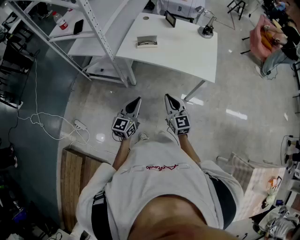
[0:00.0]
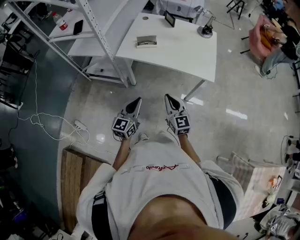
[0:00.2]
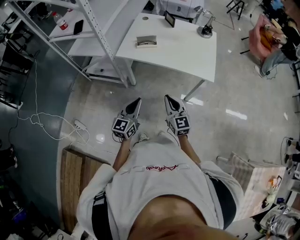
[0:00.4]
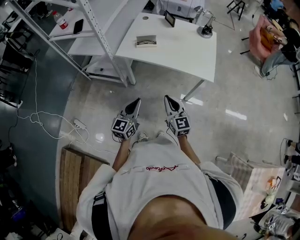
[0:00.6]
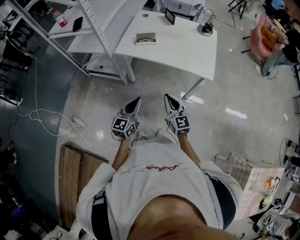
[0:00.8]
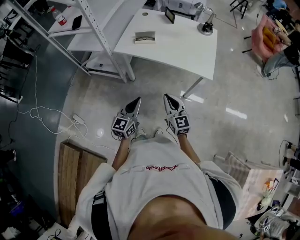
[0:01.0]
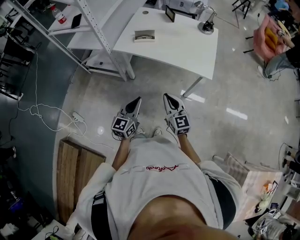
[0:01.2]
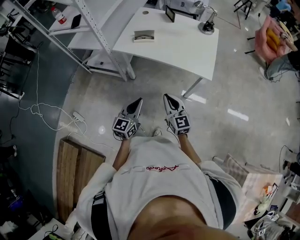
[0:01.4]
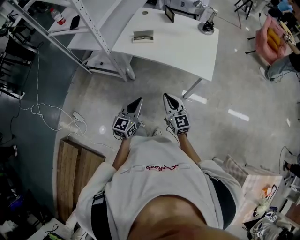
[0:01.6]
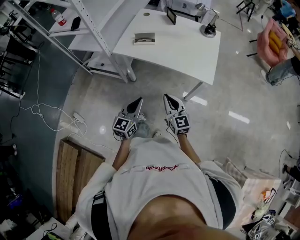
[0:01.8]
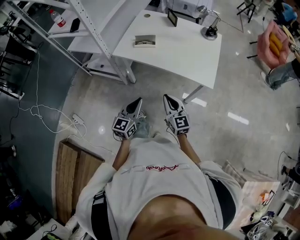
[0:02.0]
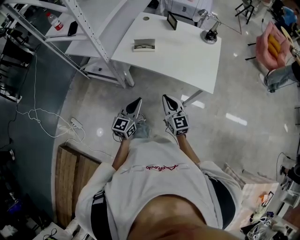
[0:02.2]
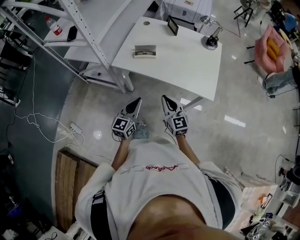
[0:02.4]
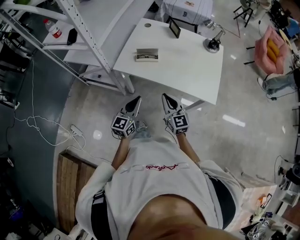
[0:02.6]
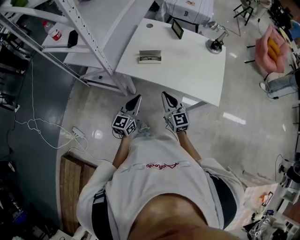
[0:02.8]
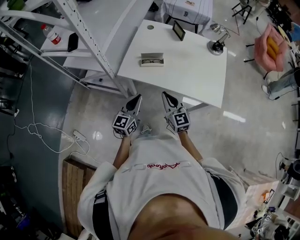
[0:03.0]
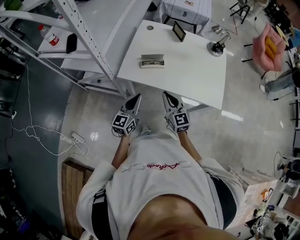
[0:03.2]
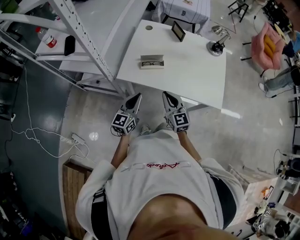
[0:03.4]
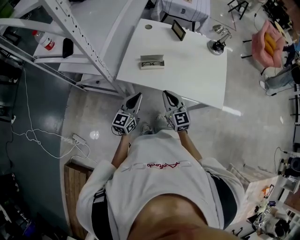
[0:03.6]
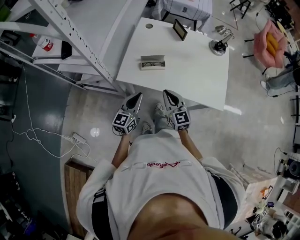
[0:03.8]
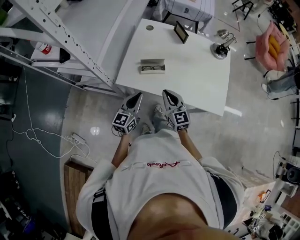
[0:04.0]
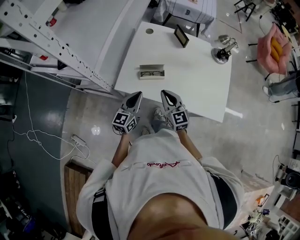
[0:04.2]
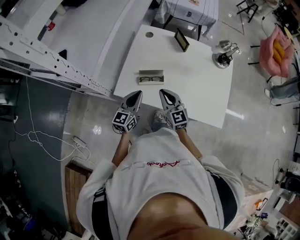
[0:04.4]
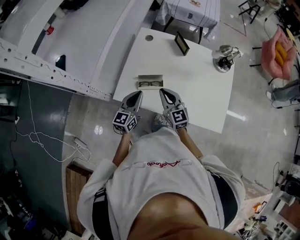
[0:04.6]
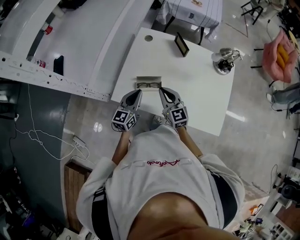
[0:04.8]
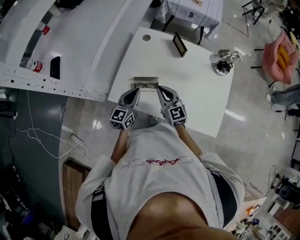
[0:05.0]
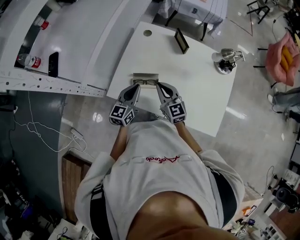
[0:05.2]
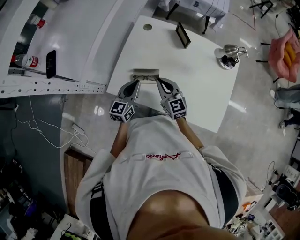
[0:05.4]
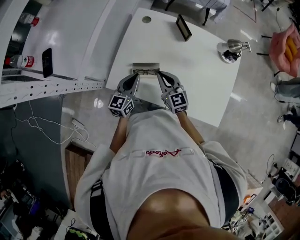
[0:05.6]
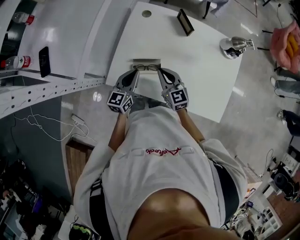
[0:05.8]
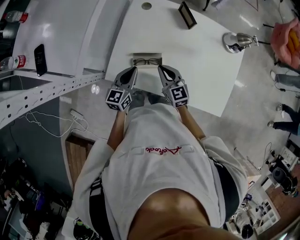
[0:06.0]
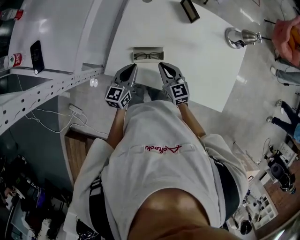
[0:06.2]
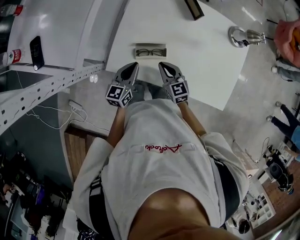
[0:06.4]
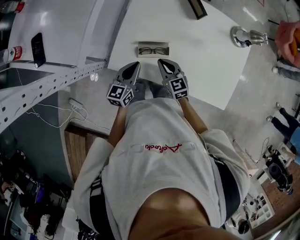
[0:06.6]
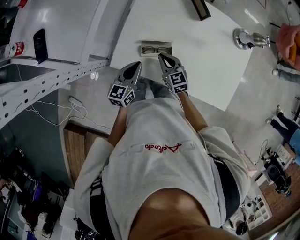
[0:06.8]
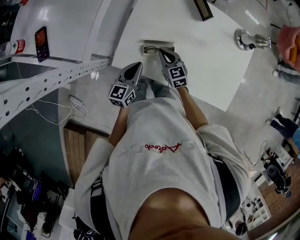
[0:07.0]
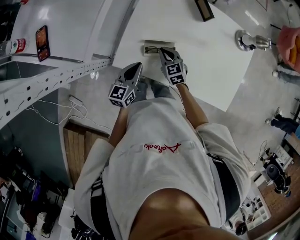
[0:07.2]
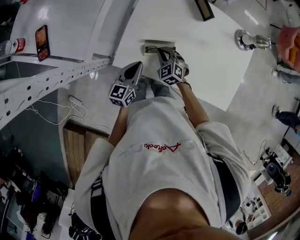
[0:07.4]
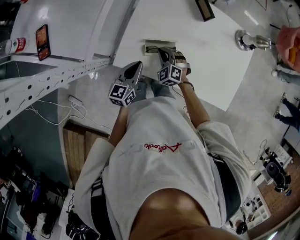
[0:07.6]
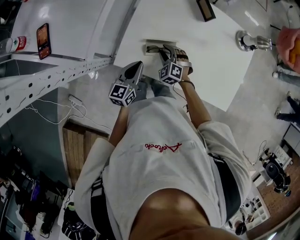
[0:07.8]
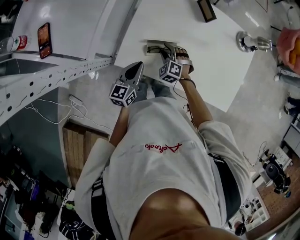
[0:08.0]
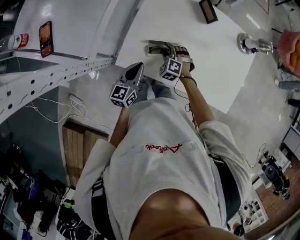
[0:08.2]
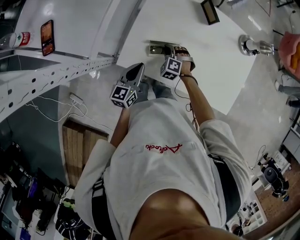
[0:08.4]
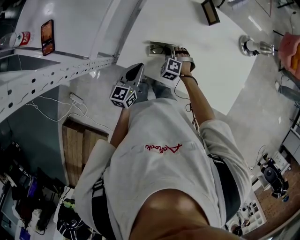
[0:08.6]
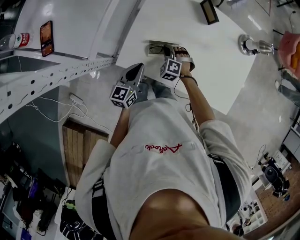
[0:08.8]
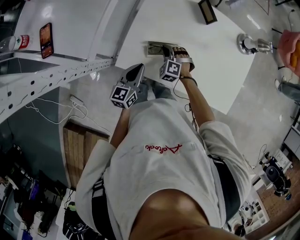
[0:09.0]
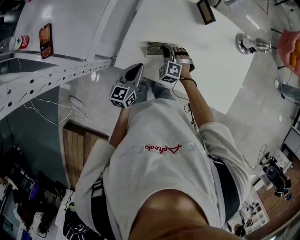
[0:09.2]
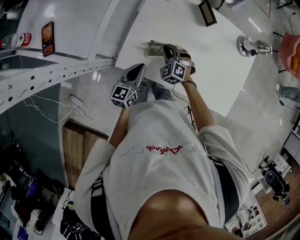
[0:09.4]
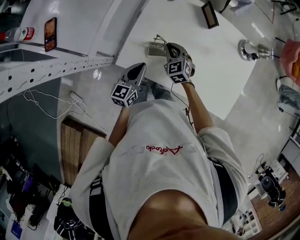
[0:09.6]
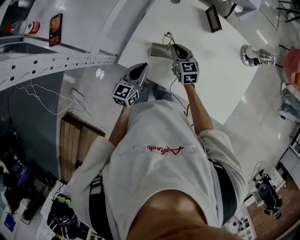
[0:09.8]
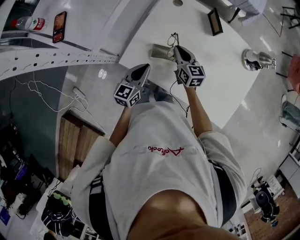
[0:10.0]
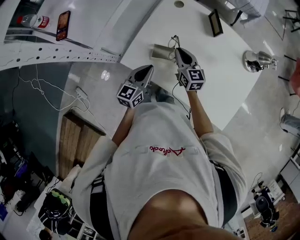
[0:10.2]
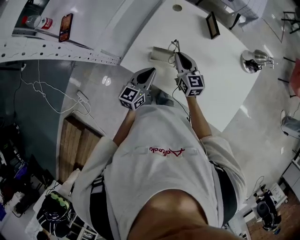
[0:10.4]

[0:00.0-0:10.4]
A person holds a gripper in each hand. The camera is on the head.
0:00.0 to 0:01.4: The right gripper moves some 5 cm; the left gripper shifts some 5 cm to the right.
0:01.4 to 0:03.0: Both grippers move forward and to the left, some 25 cm.
0:03.0 to 0:04.4: The two grippers go some 15 cm forward.
0:04.4 to 0:06.0: The grippers both shift forward and downward by roughly 10 cm.
0:06.0 to 0:07.4: The right gripper moves downward and to the left, about 10 cm, and swivels approximately 40 degrees. The left gripper ends up approximately 5 cm from where it was.
0:07.4 to 0:09.0: The right gripper swivels about 30 degrees, and opens and closes again.
0:09.0 to 0:10.4: The left gripper heads to the right, covering about 5 cm; the right gripper moves upward and to the right, approximately 15 cm, and rolls clockwise, seen from behind, by some 60 degrees.

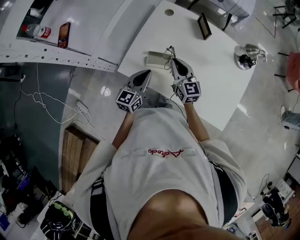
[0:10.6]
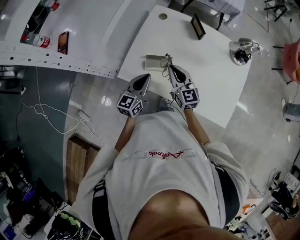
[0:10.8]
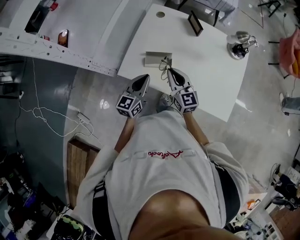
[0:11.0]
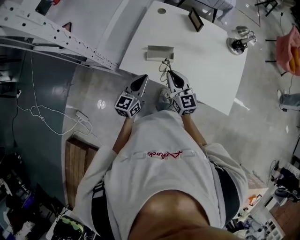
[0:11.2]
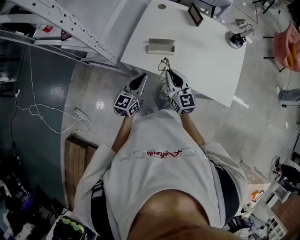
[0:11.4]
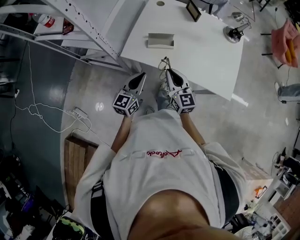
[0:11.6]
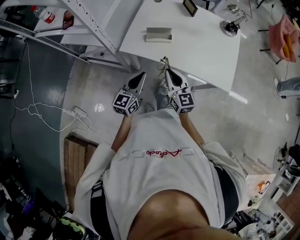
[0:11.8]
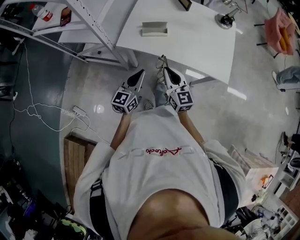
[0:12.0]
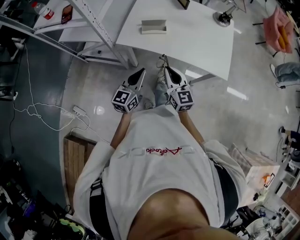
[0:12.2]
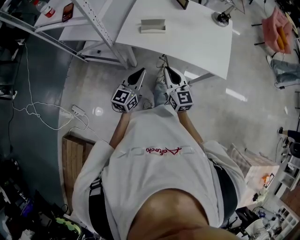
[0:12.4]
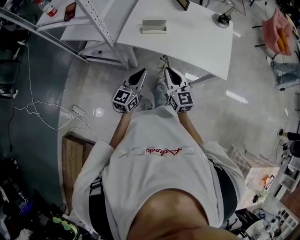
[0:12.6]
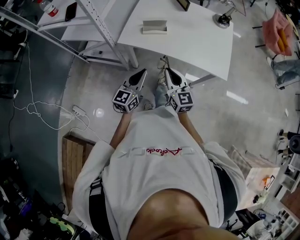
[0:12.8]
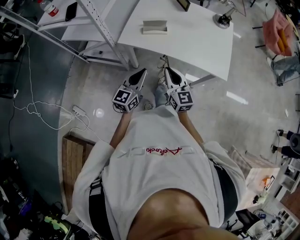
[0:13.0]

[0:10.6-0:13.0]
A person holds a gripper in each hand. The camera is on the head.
0:10.6 to 0:11.8: Both grippers travel together backward, roughly 20 cm.
0:11.8 to 0:13.0: The two grippers go about 5 cm backward.

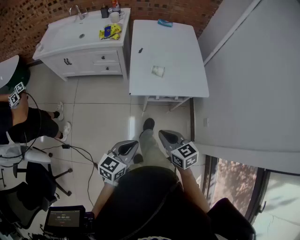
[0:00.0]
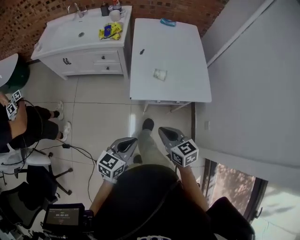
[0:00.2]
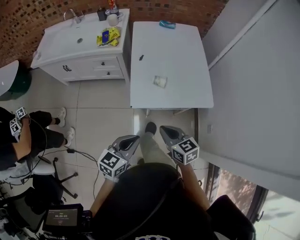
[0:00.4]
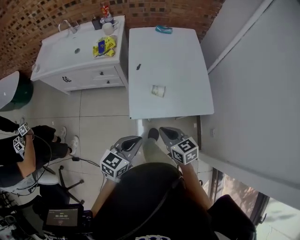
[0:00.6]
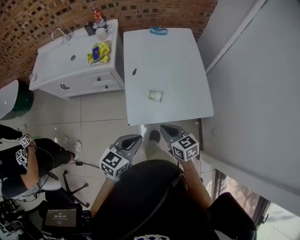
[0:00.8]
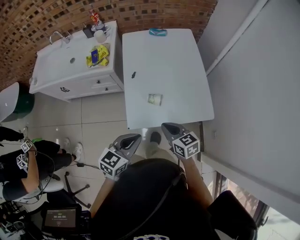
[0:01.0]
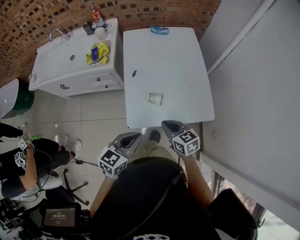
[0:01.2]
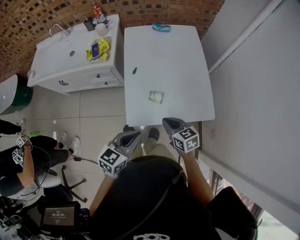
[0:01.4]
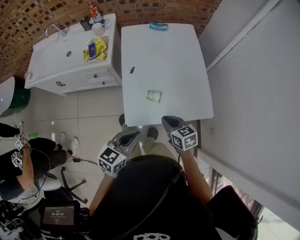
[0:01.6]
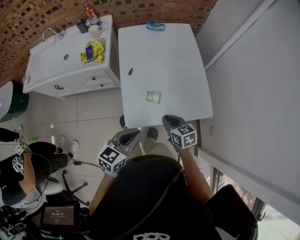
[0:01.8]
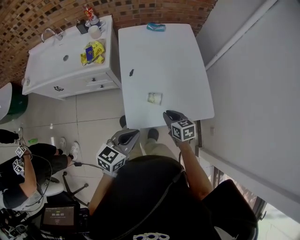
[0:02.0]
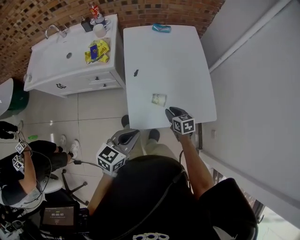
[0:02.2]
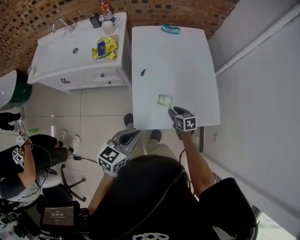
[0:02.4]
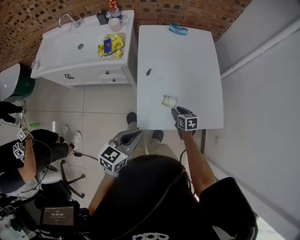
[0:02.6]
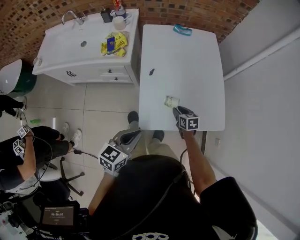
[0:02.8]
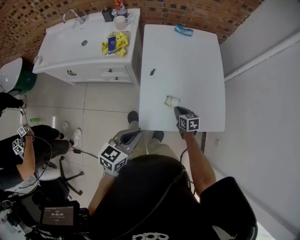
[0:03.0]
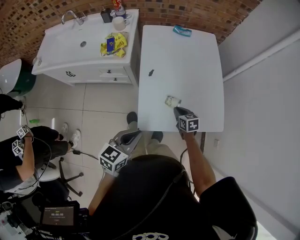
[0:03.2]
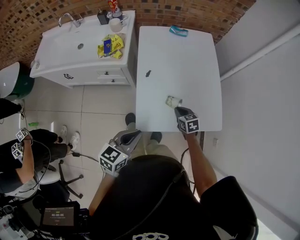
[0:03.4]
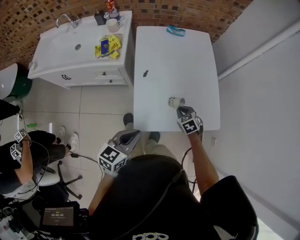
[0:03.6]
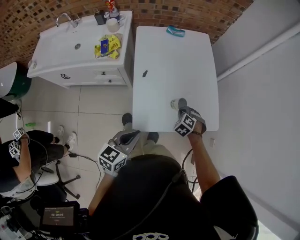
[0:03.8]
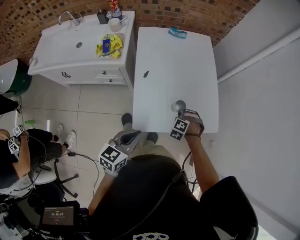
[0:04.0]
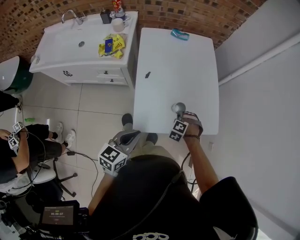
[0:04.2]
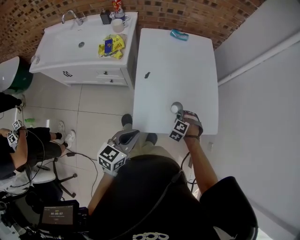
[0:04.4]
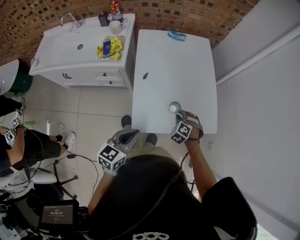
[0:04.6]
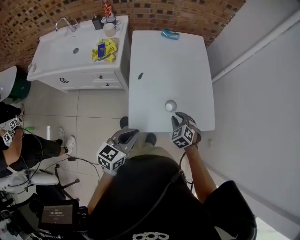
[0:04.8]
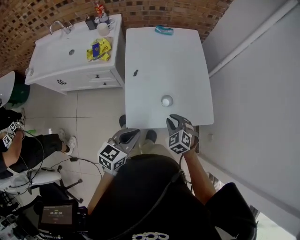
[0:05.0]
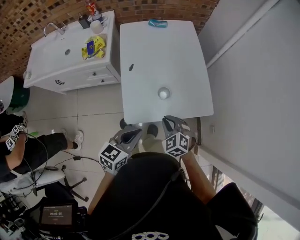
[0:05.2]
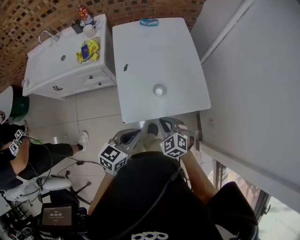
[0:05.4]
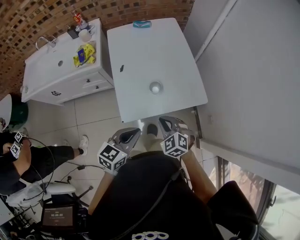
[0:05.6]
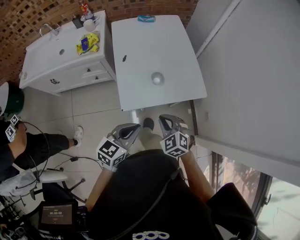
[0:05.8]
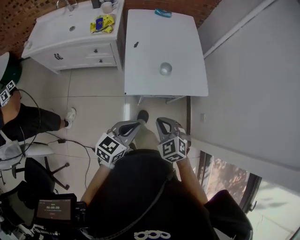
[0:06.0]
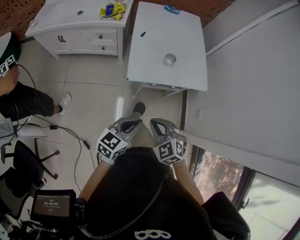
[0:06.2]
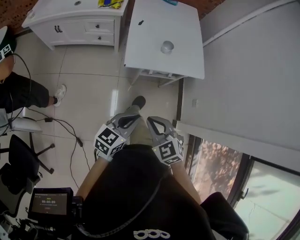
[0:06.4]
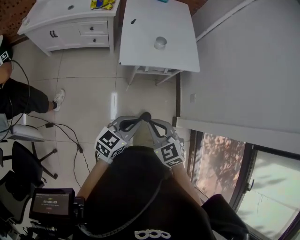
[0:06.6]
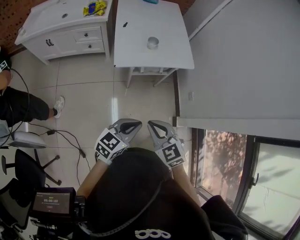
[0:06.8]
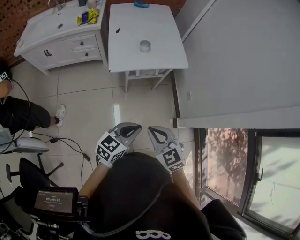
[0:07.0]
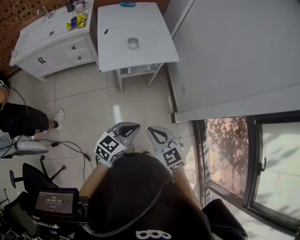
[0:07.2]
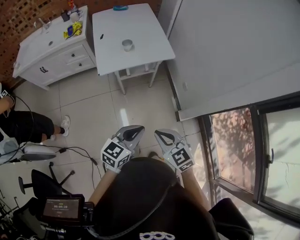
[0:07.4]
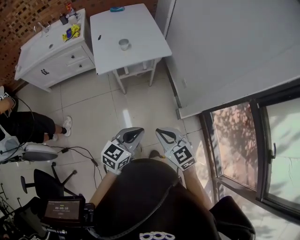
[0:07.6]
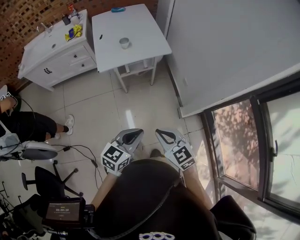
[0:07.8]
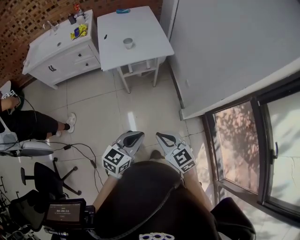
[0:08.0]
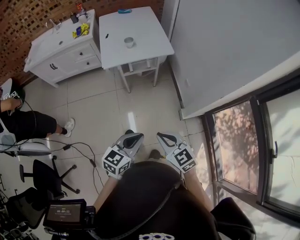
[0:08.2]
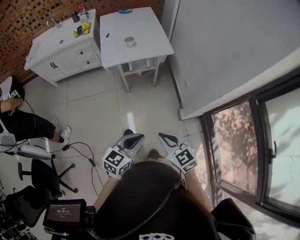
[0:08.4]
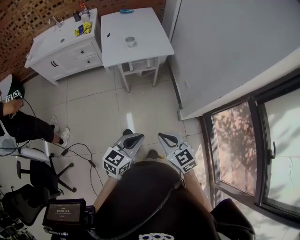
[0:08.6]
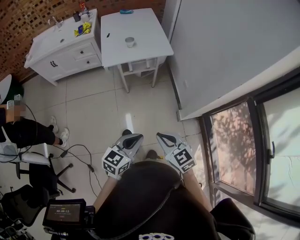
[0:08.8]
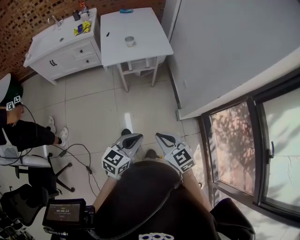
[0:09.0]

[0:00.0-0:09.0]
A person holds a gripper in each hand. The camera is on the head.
0:00.0 to 0:01.6: Both grippers move forward, some 30 cm.
0:01.6 to 0:03.0: The right gripper shifts about 20 cm downward and forward, and opens, then closes once more. Meanwhile the left gripper is displaced to the left by approximately 5 cm.
0:03.0 to 0:04.4: The right gripper rolls counterclockwise, seen from behind, by about 70 degrees.
0:04.4 to 0:06.0: The right gripper is displaced backward and upward by about 35 cm, and rotates roughly 40 degrees; the left gripper goes some 20 cm backward and to the right.
0:06.0 to 0:07.6: The grippers both shift backward and to the right by roughly 35 cm. The right gripper changes its angle by roughly 30 degrees.
0:07.6 to 0:09.0: Both grippers move backward, approximately 10 cm.

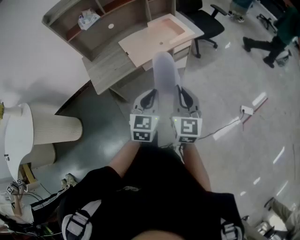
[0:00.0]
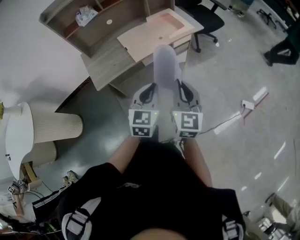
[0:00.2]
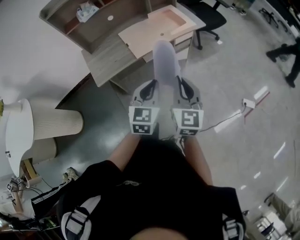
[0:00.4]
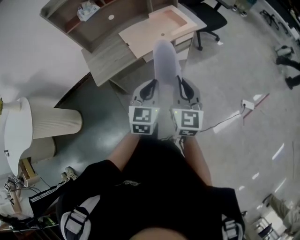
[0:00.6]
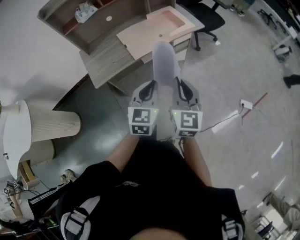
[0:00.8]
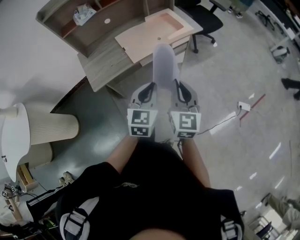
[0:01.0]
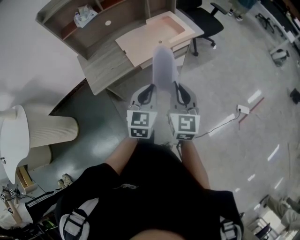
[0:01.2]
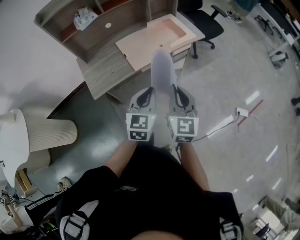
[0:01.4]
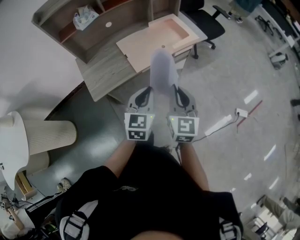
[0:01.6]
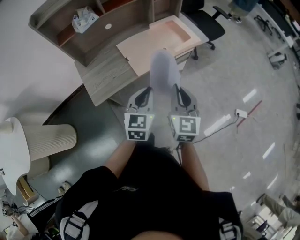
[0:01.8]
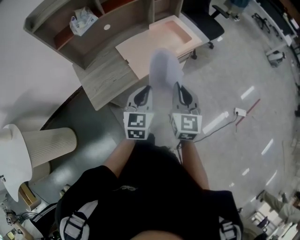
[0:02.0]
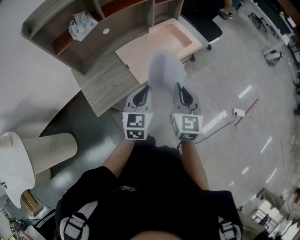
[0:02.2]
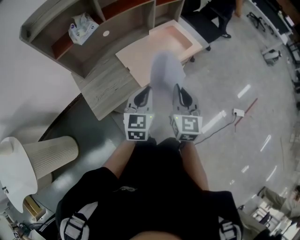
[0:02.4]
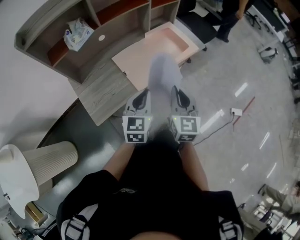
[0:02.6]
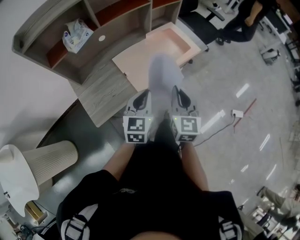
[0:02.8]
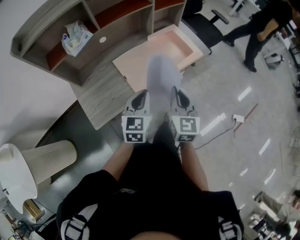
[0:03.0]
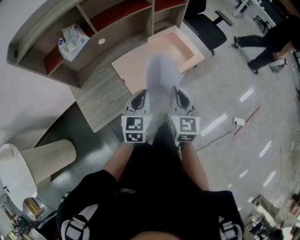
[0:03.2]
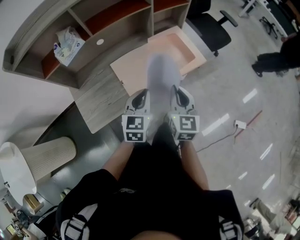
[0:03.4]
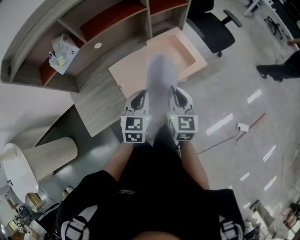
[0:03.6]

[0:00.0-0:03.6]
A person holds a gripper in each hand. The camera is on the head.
0:00.0 to 0:01.8: The grippers both shift forward and to the left by approximately 15 cm.
0:01.8 to 0:03.6: Both grippers move forward, approximately 25 cm.
